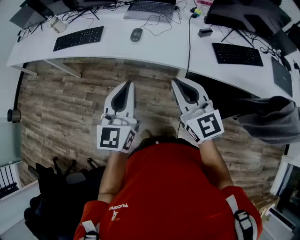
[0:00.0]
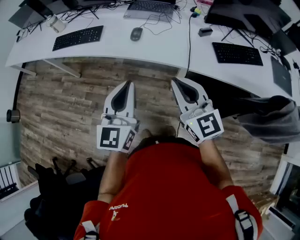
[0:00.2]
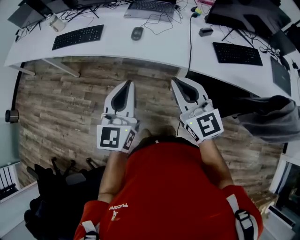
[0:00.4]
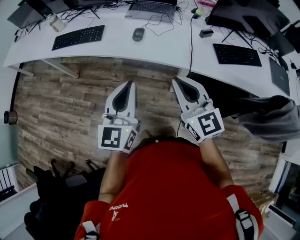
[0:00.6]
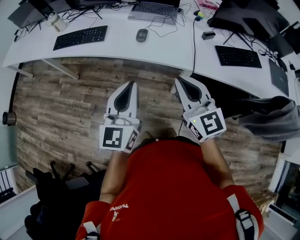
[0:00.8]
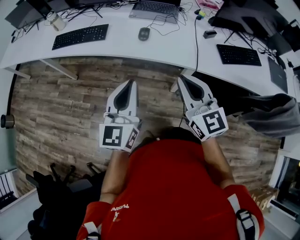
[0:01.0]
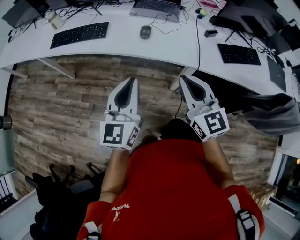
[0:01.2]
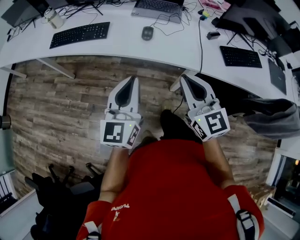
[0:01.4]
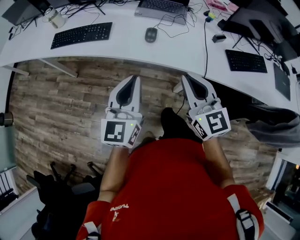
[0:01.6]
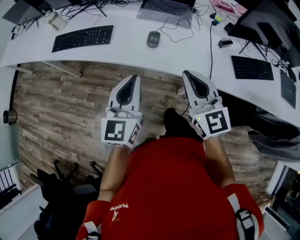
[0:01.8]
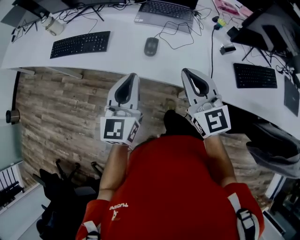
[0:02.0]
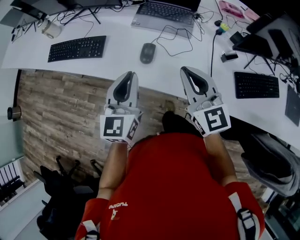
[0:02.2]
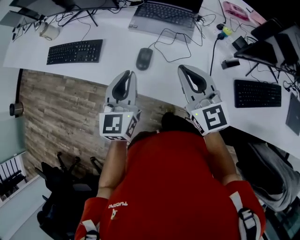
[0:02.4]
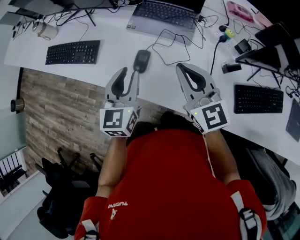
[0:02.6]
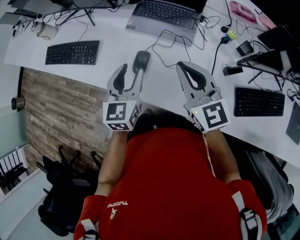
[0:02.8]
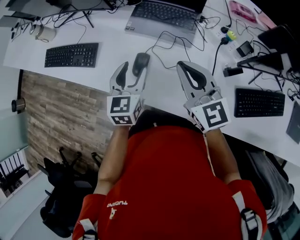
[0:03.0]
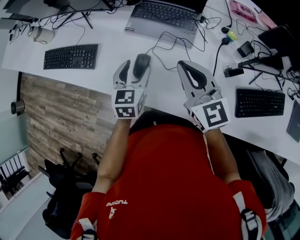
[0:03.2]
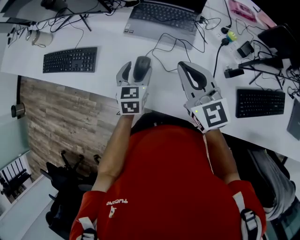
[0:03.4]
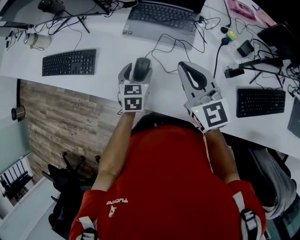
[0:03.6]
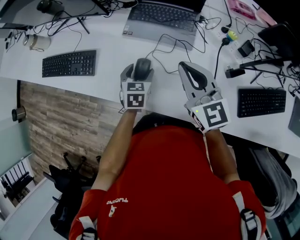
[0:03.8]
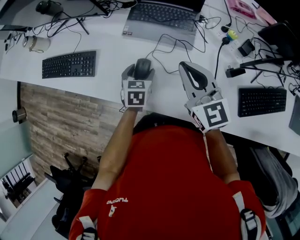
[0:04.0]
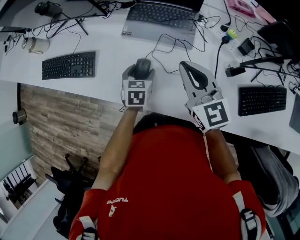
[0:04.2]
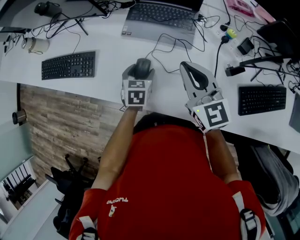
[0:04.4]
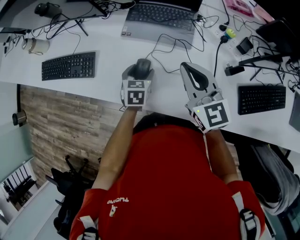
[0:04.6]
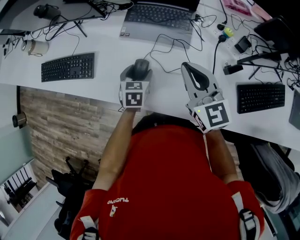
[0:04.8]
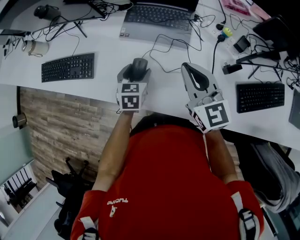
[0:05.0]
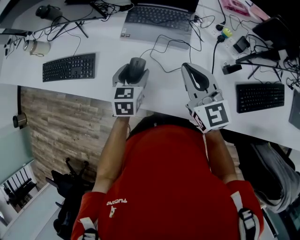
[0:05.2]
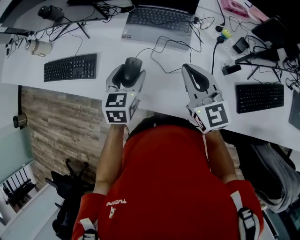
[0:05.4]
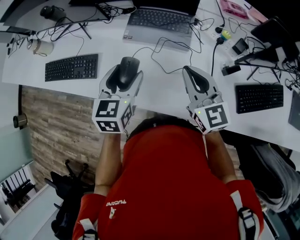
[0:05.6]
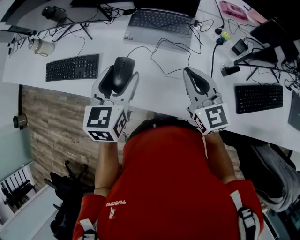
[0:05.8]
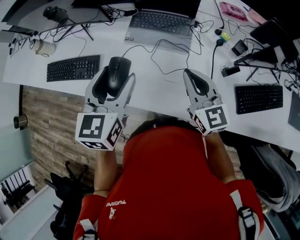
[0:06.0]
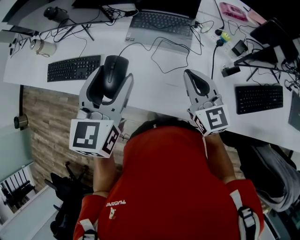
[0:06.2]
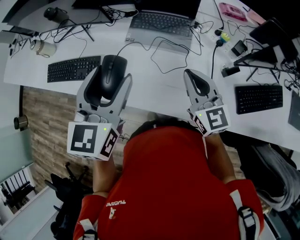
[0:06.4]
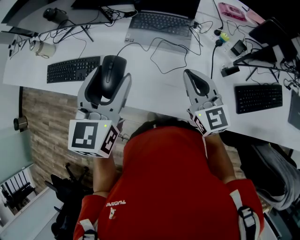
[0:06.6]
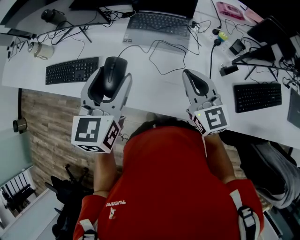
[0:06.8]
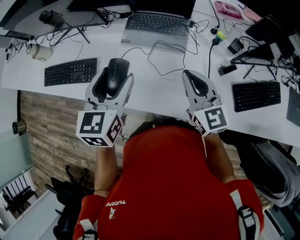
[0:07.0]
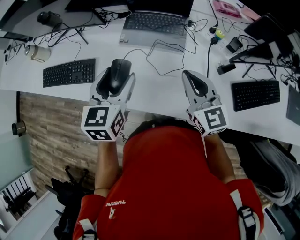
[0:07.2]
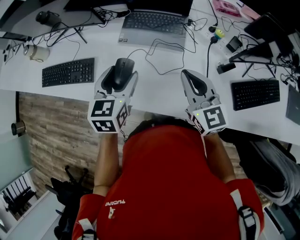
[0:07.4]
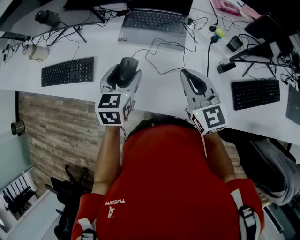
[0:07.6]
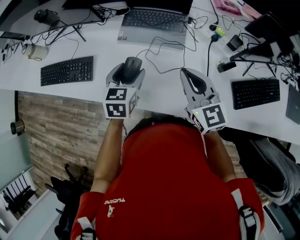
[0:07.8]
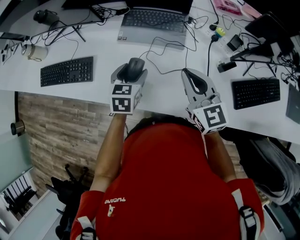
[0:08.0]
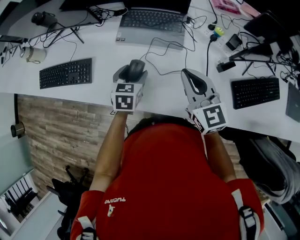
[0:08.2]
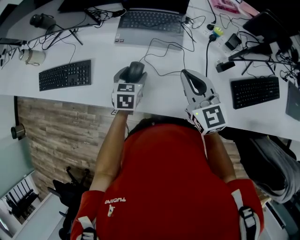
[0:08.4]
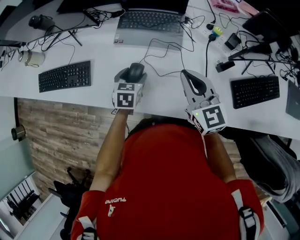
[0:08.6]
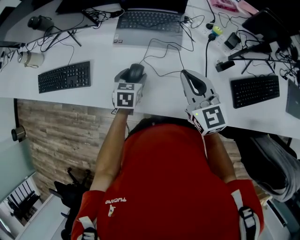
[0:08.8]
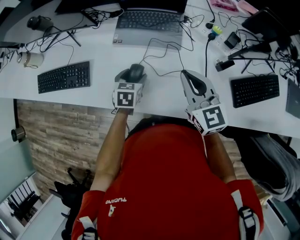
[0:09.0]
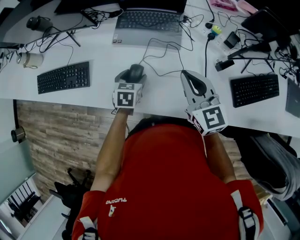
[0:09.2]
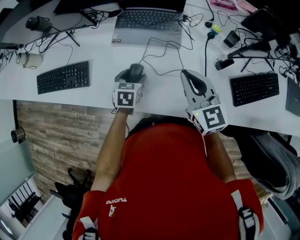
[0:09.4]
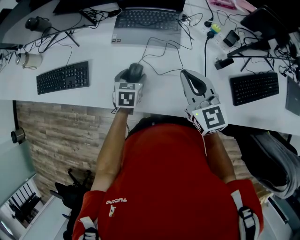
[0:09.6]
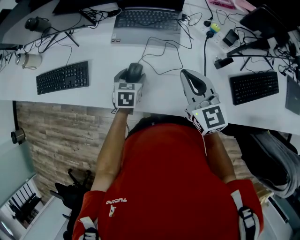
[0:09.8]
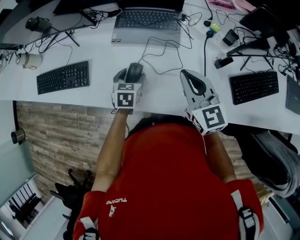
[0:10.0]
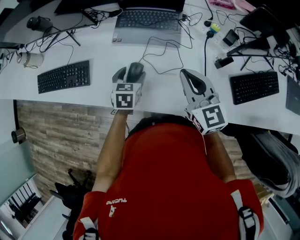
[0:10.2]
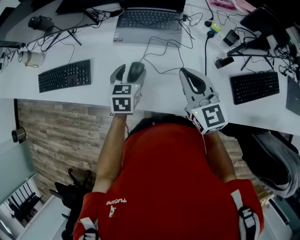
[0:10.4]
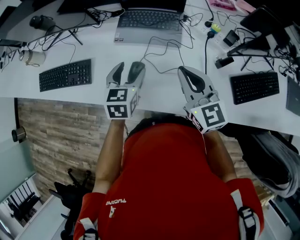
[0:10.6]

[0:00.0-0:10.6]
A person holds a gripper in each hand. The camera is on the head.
0:00.0 to 0:01.6: The right gripper travels forward and to the left by roughly 10 cm. The left gripper moves to the left and forward, approximately 10 cm.
0:01.6 to 0:03.0: The right gripper travels forward and to the right by some 30 cm. Meanwhile the left gripper heads forward, to the right and downward, covering about 35 cm, swivels some 30 degrees, and opens.
0:03.0 to 0:04.6: The left gripper moves downward, approximately 15 cm, and swivels roughly 30 degrees.
0:04.6 to 0:06.0: The left gripper travels upward by approximately 25 cm, and swivels approximately 30 degrees.
0:06.0 to 0:07.6: The left gripper moves downward, approximately 10 cm.
0:07.6 to 0:09.0: The left gripper is displaced downward by approximately 15 cm.
0:09.0 to 0:10.6: The left gripper moves upward, roughly 10 cm.

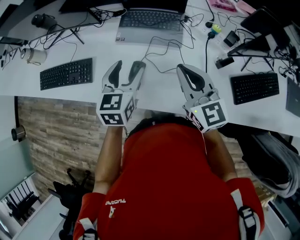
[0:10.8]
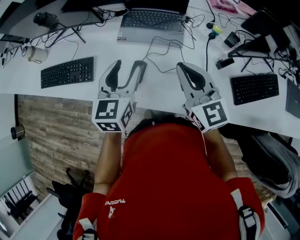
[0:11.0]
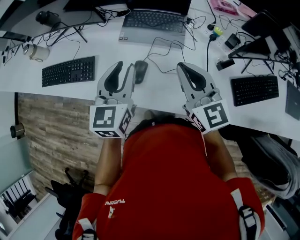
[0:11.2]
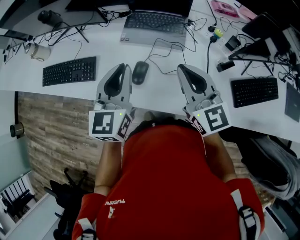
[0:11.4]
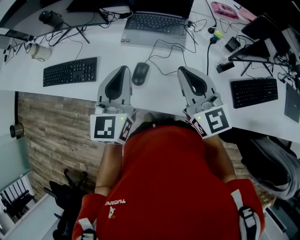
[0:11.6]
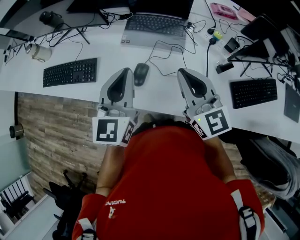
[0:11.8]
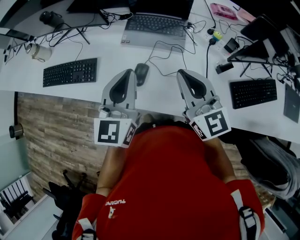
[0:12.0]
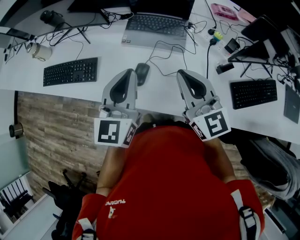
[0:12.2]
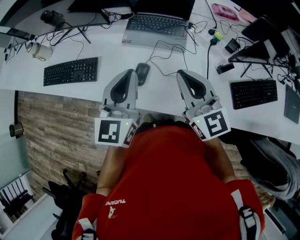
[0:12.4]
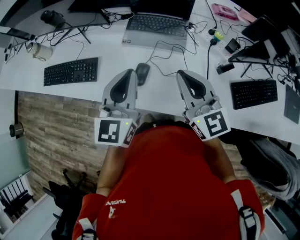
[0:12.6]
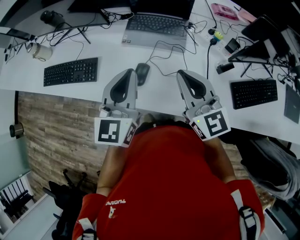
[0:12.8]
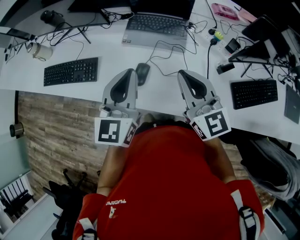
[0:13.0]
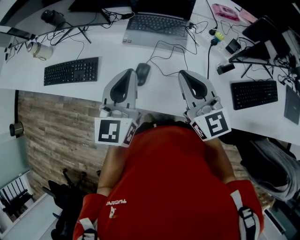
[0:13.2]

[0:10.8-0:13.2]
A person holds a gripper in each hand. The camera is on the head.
0:10.8 to 0:12.0: The right gripper changes place by about 5 cm; the left gripper heads upward, covering approximately 10 cm, swivels about 20 degrees, and closes its fingers.
0:12.0 to 0:13.2: Both grippers stay about where they are.

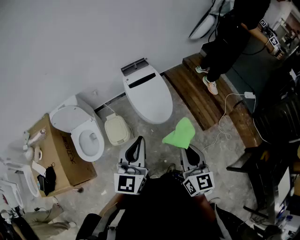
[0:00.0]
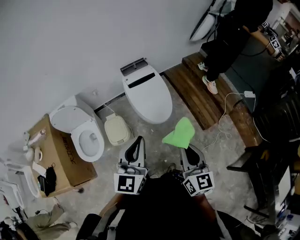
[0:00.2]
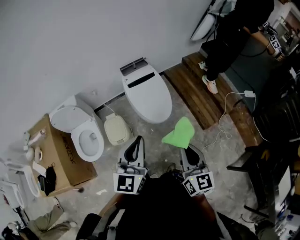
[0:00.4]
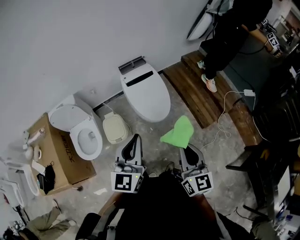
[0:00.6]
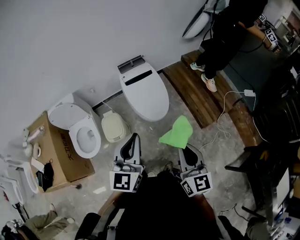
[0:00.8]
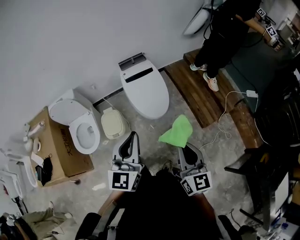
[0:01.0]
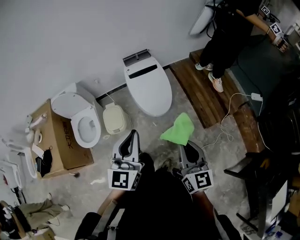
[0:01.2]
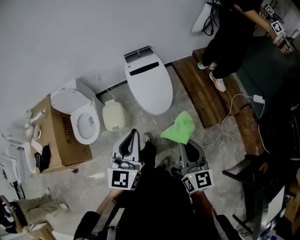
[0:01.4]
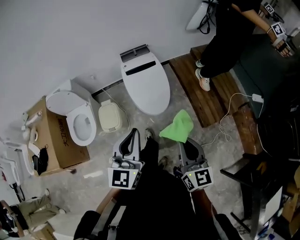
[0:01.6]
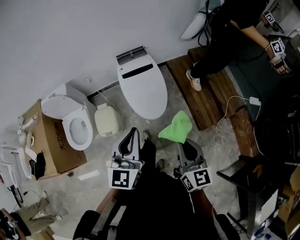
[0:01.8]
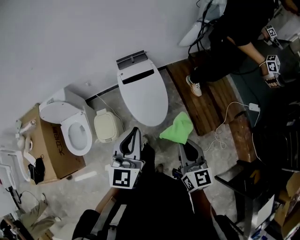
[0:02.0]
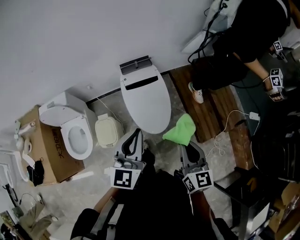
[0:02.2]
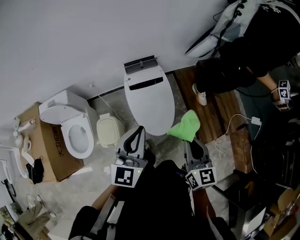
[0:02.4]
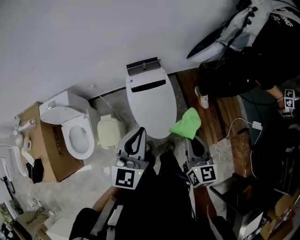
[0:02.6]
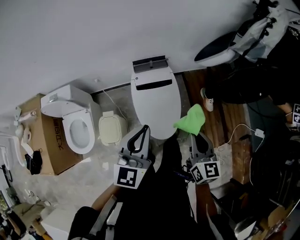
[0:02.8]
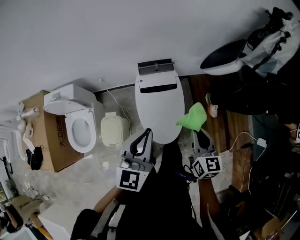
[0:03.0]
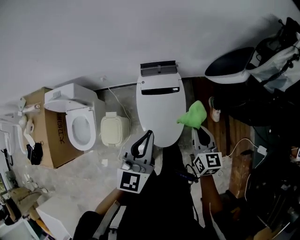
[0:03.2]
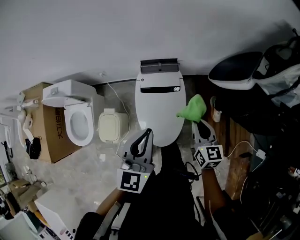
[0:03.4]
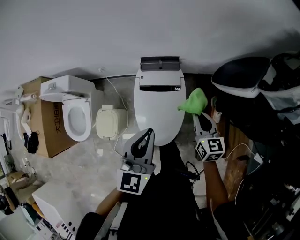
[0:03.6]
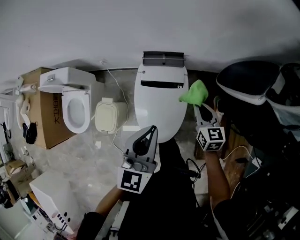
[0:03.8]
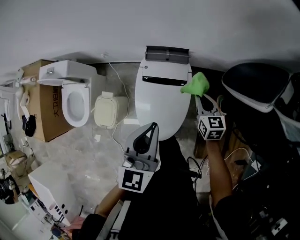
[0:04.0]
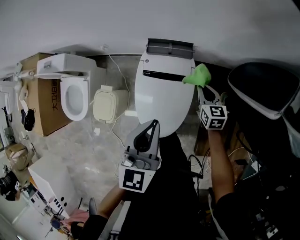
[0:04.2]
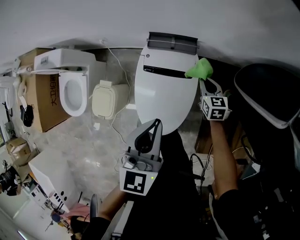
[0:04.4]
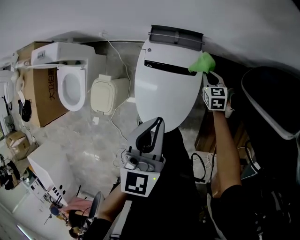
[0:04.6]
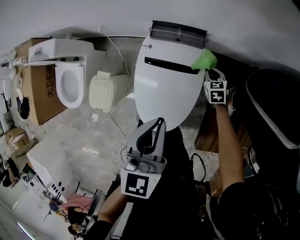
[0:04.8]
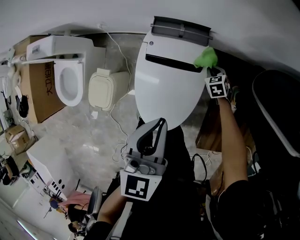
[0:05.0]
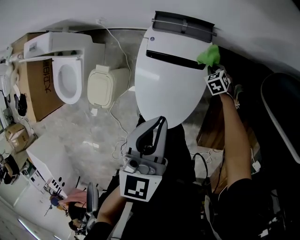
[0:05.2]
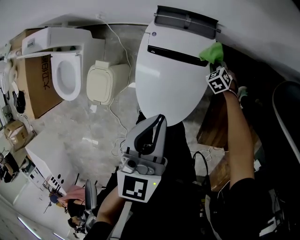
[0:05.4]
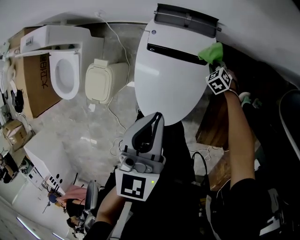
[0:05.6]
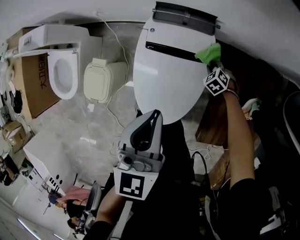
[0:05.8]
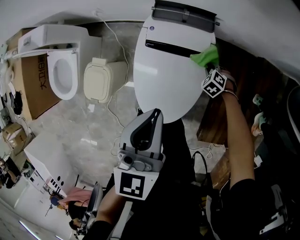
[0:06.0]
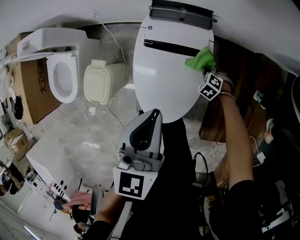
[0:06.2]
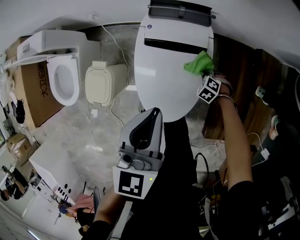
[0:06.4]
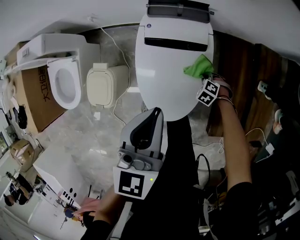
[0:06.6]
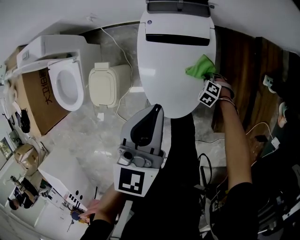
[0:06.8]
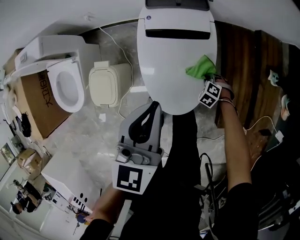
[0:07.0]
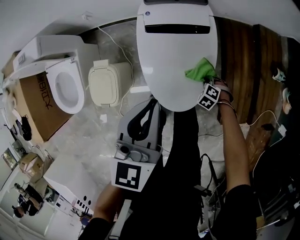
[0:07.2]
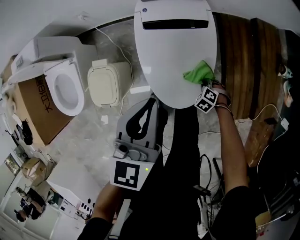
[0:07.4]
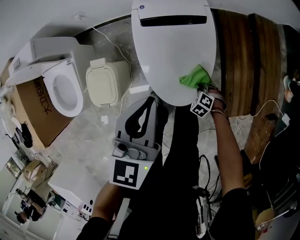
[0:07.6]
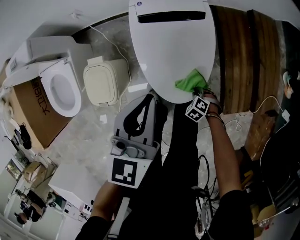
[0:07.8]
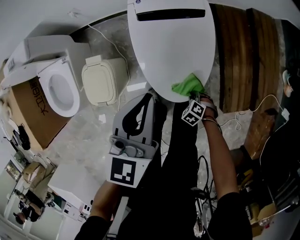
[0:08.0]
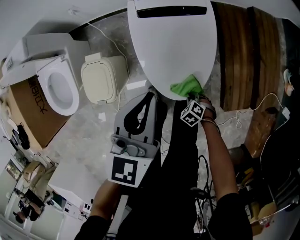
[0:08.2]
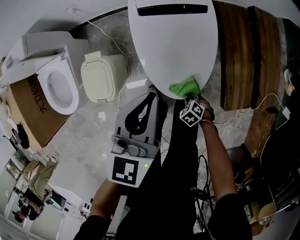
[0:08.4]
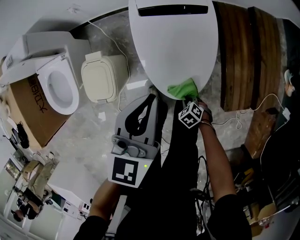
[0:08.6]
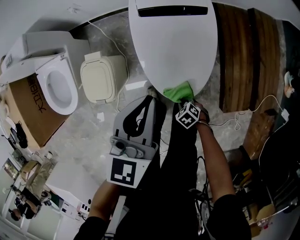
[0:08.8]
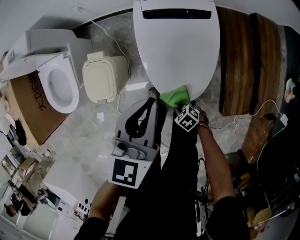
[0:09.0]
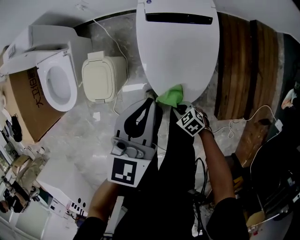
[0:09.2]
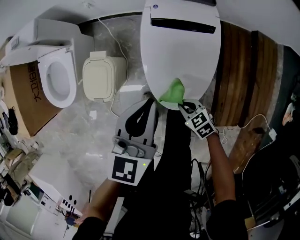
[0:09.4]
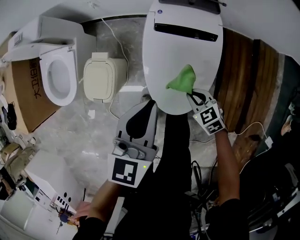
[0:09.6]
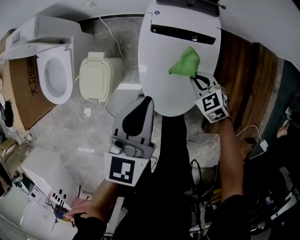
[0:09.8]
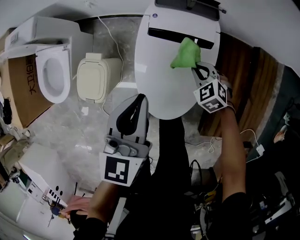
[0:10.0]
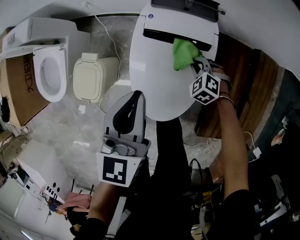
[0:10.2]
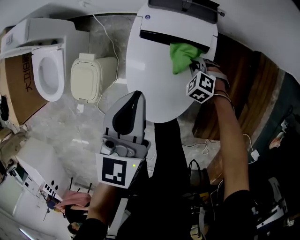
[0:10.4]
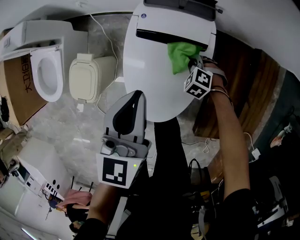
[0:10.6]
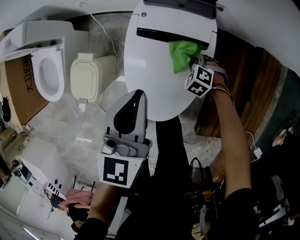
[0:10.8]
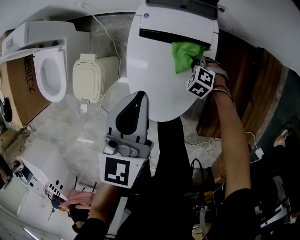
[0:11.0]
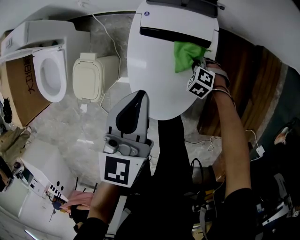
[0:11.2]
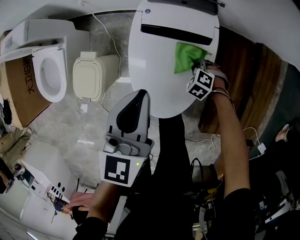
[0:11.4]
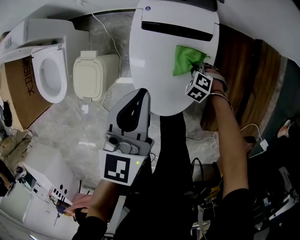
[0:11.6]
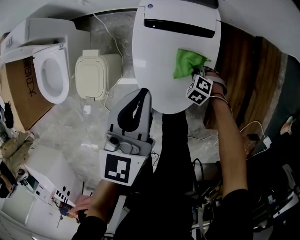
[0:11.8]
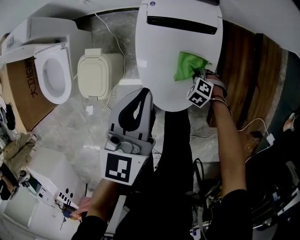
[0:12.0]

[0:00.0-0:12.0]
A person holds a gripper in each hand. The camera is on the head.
0:00.0 to 0:01.6: The right gripper is displaced to the right and forward by roughly 10 cm, while the left gripper travels to the right by about 10 cm.
0:01.6 to 0:03.0: The grippers both shift forward by approximately 35 cm.
0:03.0 to 0:04.4: The left gripper travels forward, downward and to the right by approximately 25 cm. Meanwhile the right gripper is displaced forward and downward by approximately 40 cm, and turns by approximately 30 degrees.
0:04.4 to 0:06.0: The right gripper heads downward, covering roughly 25 cm, and twists about 50 degrees counterclockwise, seen from behind. Meanwhile the left gripper goes some 10 cm downward.
0:06.0 to 0:07.6: The left gripper changes place by roughly 15 cm; the right gripper ends up roughly 30 cm from where it was.
0:07.6 to 0:09.0: The right gripper moves some 20 cm, and turns by approximately 30 degrees.
0:09.0 to 0:10.4: The right gripper ends up some 40 cm from where it was, and rotates around the line of its fingers by roughly 40 degrees, counterclockwise from behind. The left gripper moves approximately 15 cm.
0:10.4 to 0:12.0: The left gripper ends up approximately 5 cm from where it was, while the right gripper ends up roughly 15 cm from where it was.
